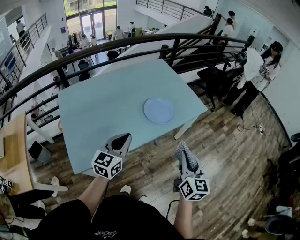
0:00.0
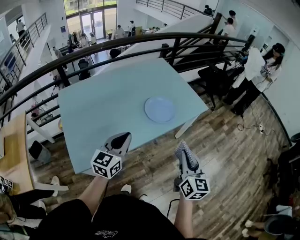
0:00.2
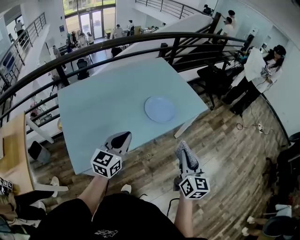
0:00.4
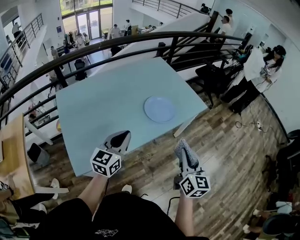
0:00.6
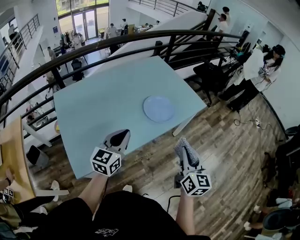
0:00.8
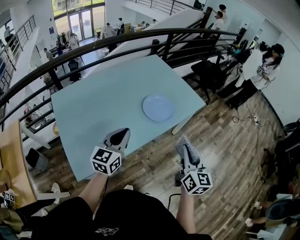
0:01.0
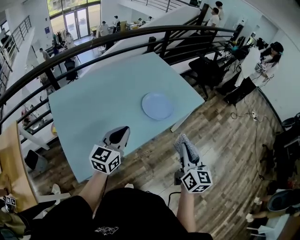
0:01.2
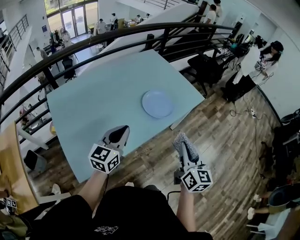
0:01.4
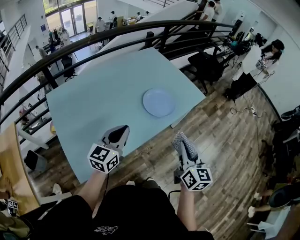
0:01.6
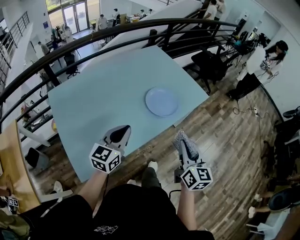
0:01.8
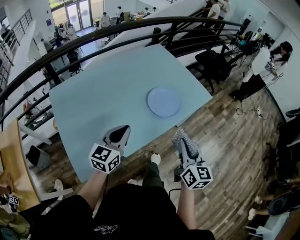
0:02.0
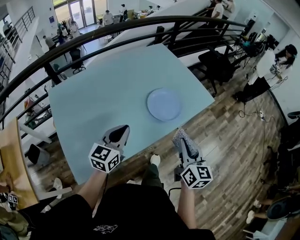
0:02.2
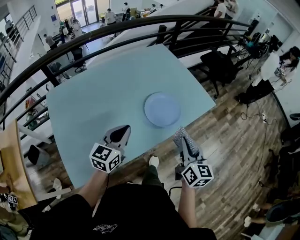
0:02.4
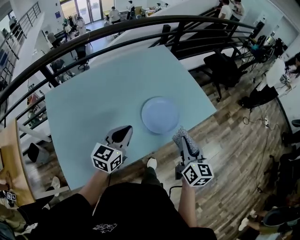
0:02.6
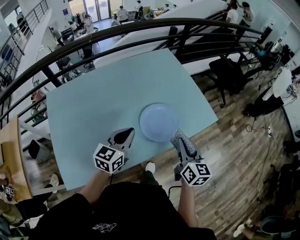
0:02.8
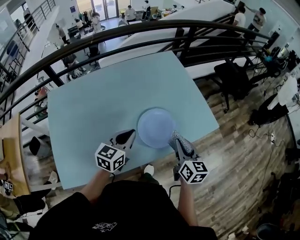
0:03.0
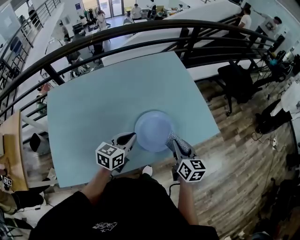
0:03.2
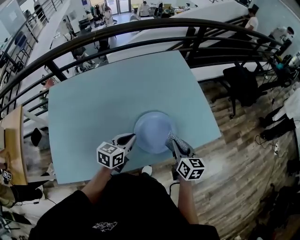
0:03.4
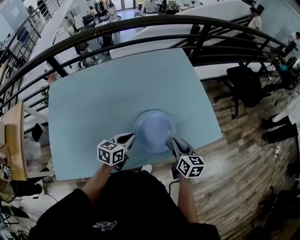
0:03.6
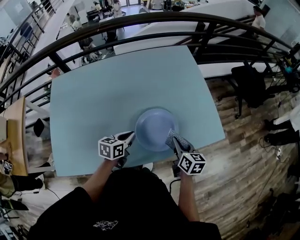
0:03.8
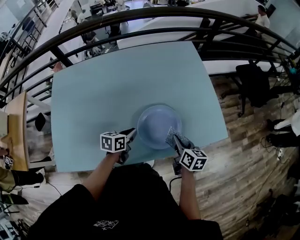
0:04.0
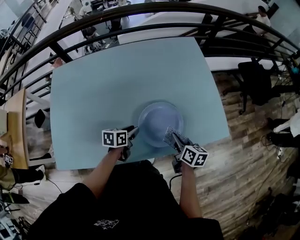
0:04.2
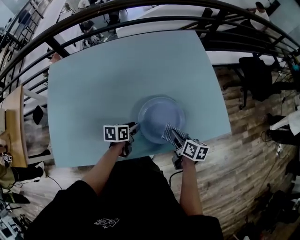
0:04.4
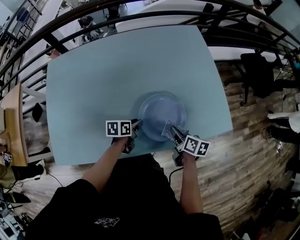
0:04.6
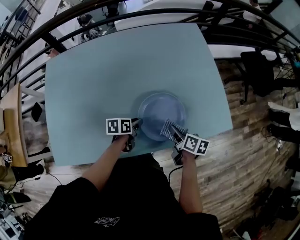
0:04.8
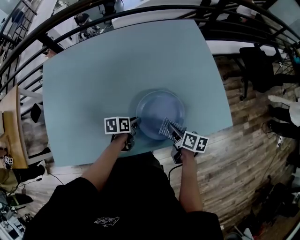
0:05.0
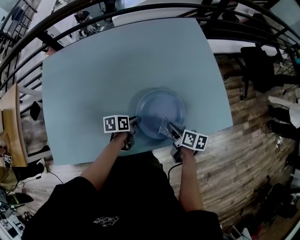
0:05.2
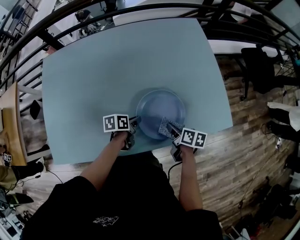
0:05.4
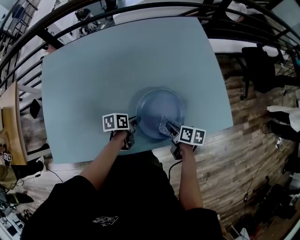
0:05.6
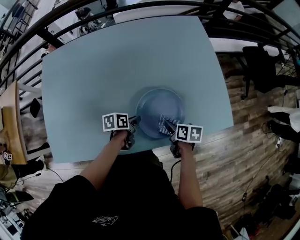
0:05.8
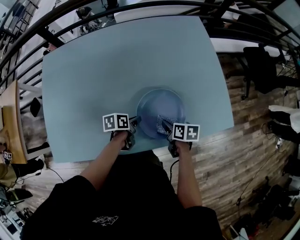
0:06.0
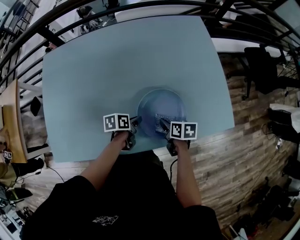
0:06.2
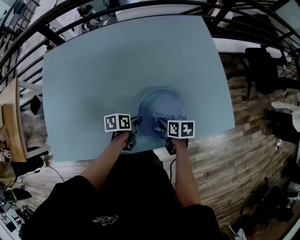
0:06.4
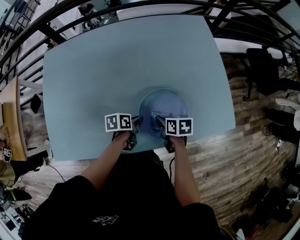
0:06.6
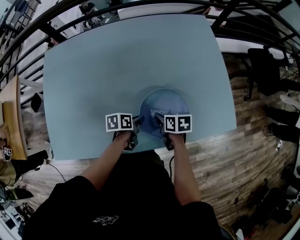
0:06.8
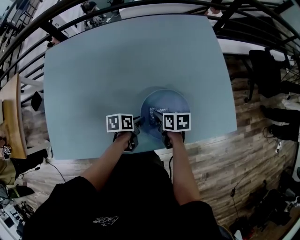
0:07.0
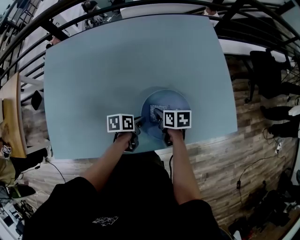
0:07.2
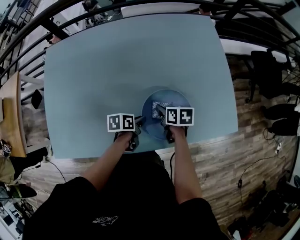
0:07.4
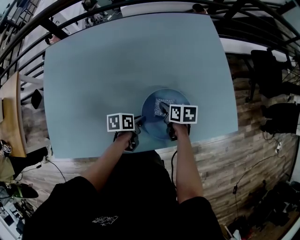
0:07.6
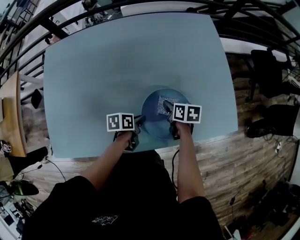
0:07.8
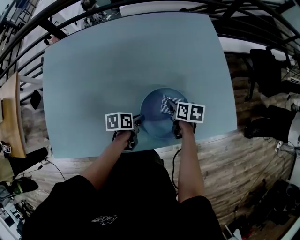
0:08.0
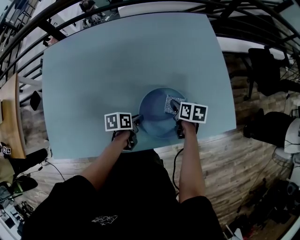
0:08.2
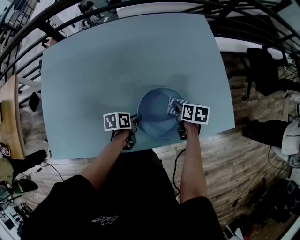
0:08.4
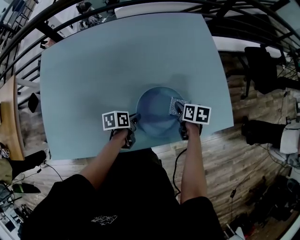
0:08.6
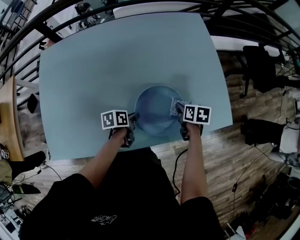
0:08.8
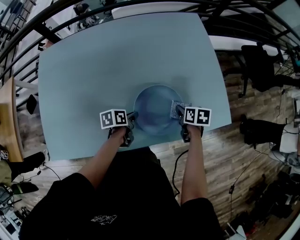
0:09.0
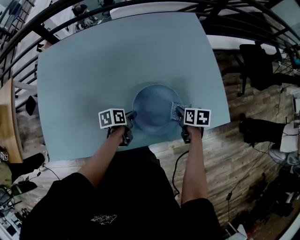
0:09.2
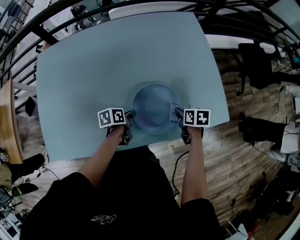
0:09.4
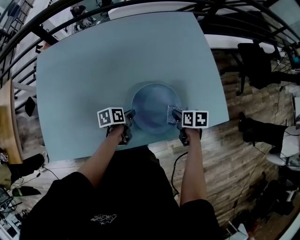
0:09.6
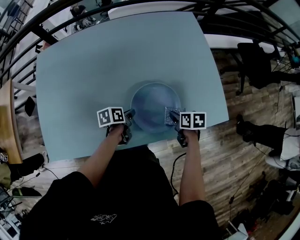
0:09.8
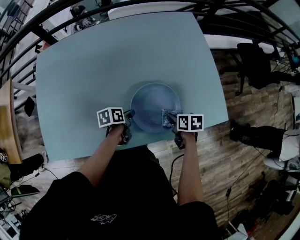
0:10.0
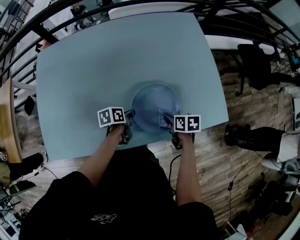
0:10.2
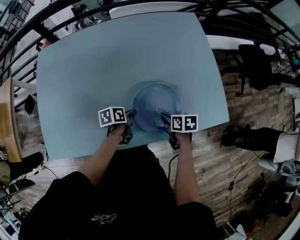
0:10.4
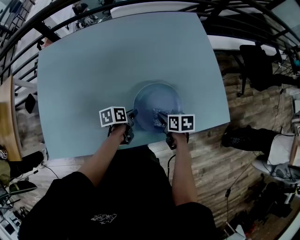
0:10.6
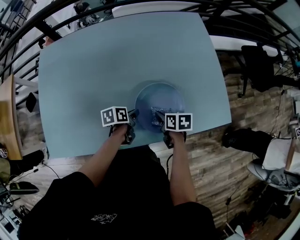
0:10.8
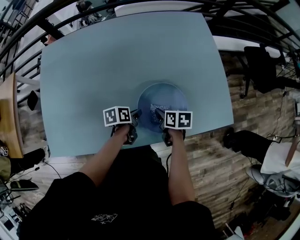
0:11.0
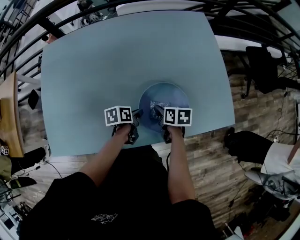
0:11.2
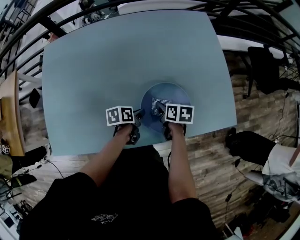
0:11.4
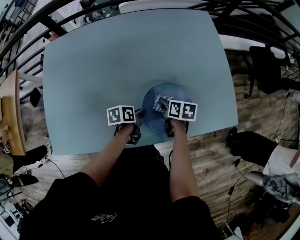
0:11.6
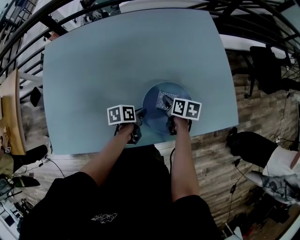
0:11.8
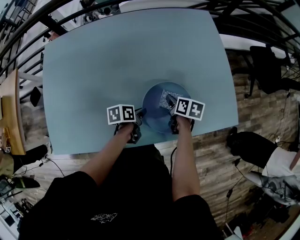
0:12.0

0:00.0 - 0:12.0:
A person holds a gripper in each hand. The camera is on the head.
0:00.0 - 0:01.6: Both grippers move to the left, some 5 cm.
0:01.6 - 0:03.0: Both grippers move forward, roughly 30 cm. The right gripper changes its angle by some 20 degrees.
0:03.0 - 0:04.4: The right gripper goes some 20 cm downward and forward, and swivels some 40 degrees, while the left gripper heads downward, covering approximately 25 cm, turns by some 50 degrees, and opens its fingers.
0:04.4 - 0:06.0: The right gripper heads downward, covering about 5 cm.
0:06.0 - 0:07.6: The right gripper shifts approximately 10 cm forward.
0:07.6 - 0:09.0: The right gripper travels to the right by roughly 15 cm.
0:09.0 - 0:10.4: The right gripper heads to the left and backward, covering some 10 cm.
0:10.4 - 0:12.0: The right gripper heads forward, covering about 10 cm.

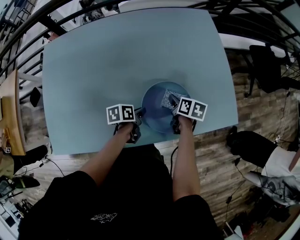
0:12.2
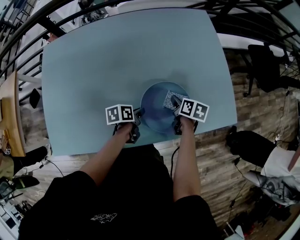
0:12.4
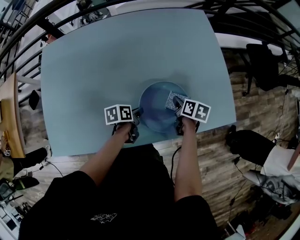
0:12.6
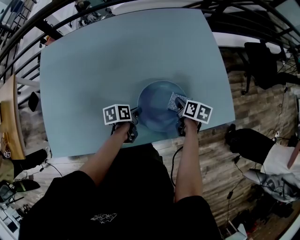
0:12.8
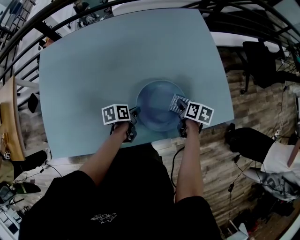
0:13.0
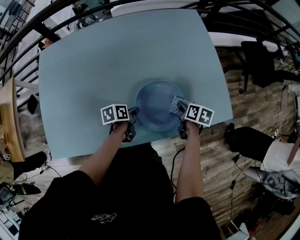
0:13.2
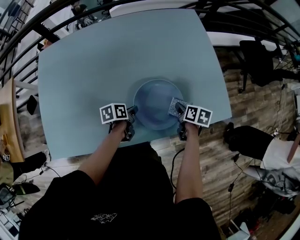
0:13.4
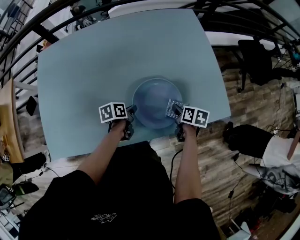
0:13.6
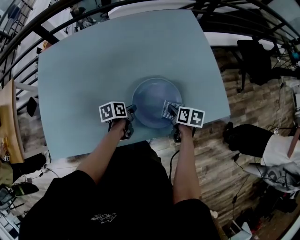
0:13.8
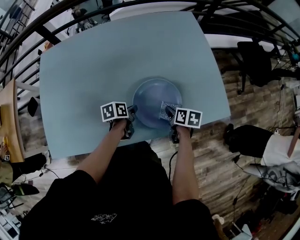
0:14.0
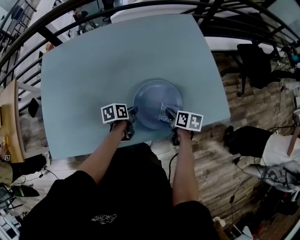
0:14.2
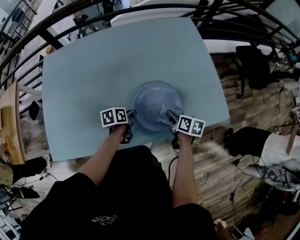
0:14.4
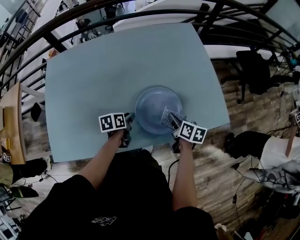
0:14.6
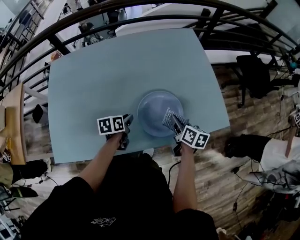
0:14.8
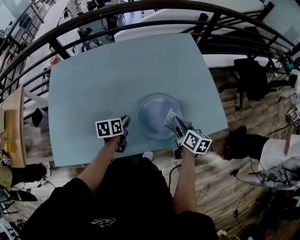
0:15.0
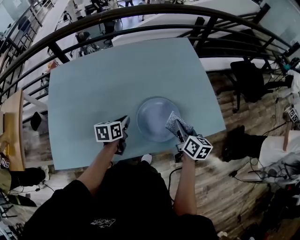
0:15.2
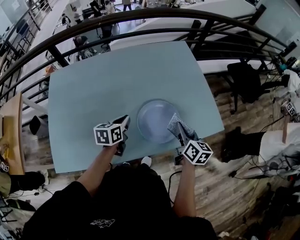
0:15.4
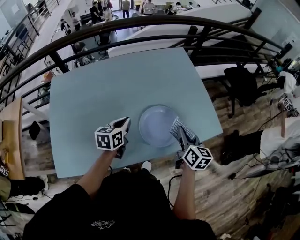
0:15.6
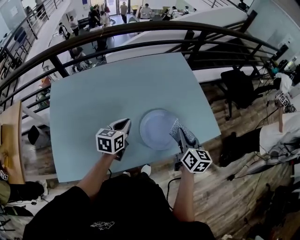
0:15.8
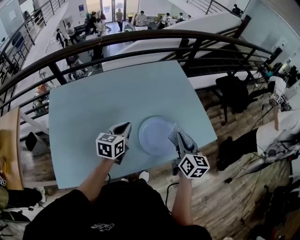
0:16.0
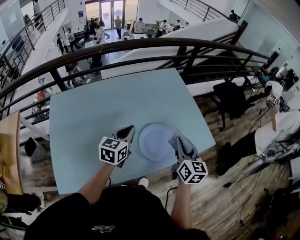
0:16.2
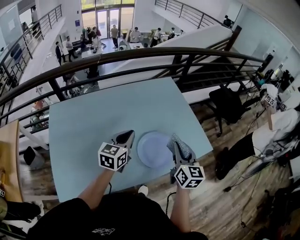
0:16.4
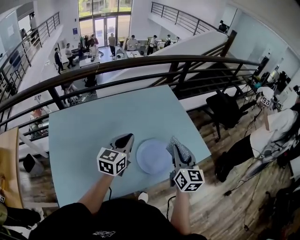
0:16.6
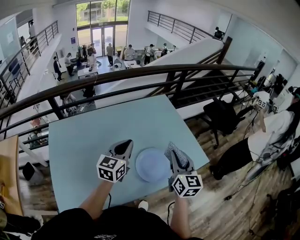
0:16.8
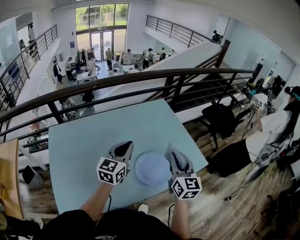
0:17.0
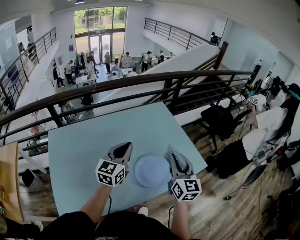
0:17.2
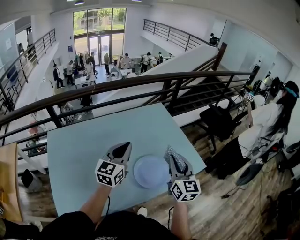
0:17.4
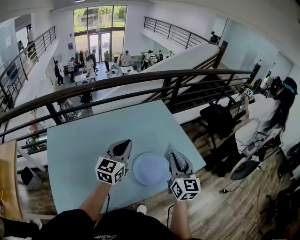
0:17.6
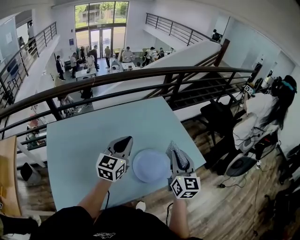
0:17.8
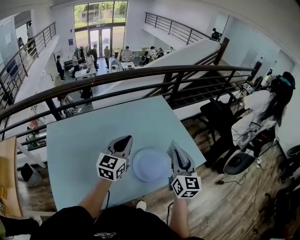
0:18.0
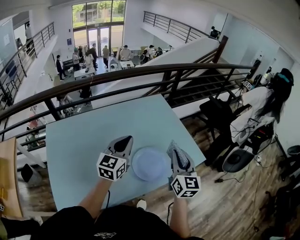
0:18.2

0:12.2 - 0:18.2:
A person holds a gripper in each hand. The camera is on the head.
0:12.2 - 0:13.8: The right gripper goes roughly 10 cm backward and to the right.
0:13.8 - 0:15.2: The left gripper travels upward and to the left by about 15 cm, and turns by roughly 30 degrees. The right gripper heads upward, covering approximately 15 cm, and changes its angle by roughly 30 degrees.
0:15.2 - 0:16.6: Both grippers travel together upward, about 25 cm. The right gripper changes its angle by roughly 30 degrees; the left gripper changes its angle by roughly 40 degrees.
0:16.6 - 0:18.2: The left gripper moves upward, about 5 cm.

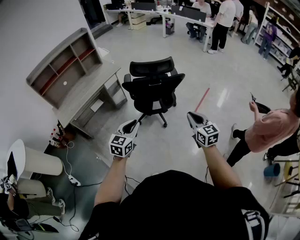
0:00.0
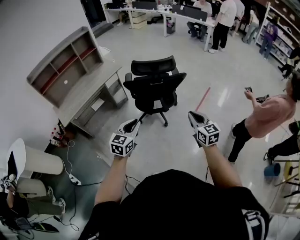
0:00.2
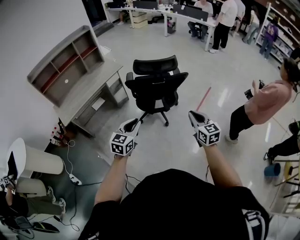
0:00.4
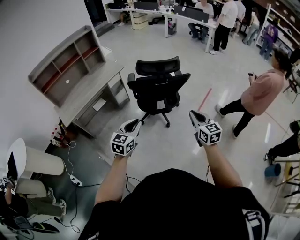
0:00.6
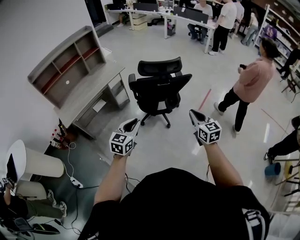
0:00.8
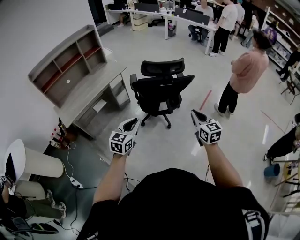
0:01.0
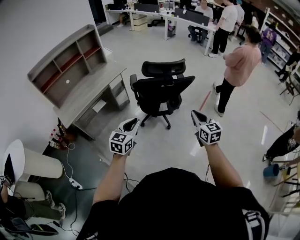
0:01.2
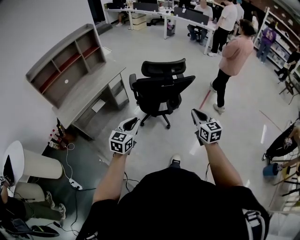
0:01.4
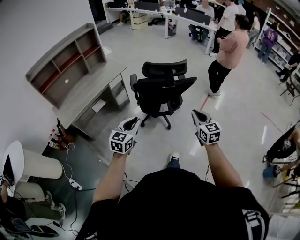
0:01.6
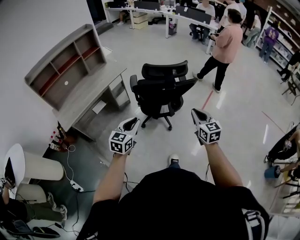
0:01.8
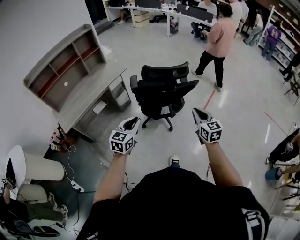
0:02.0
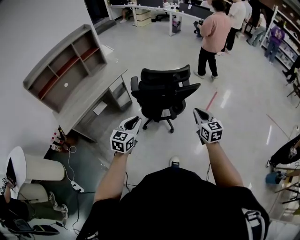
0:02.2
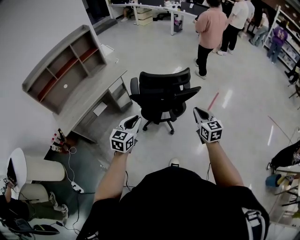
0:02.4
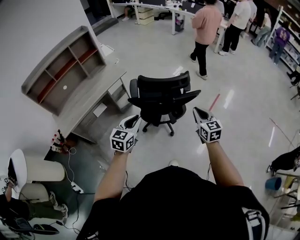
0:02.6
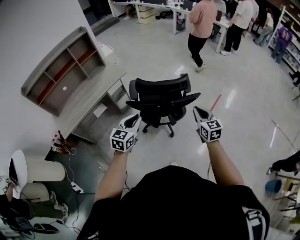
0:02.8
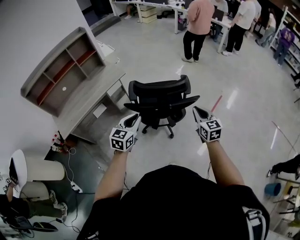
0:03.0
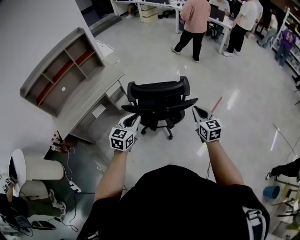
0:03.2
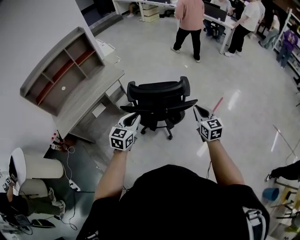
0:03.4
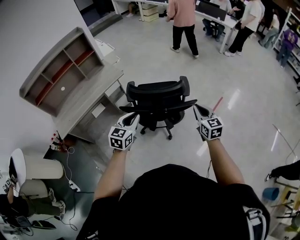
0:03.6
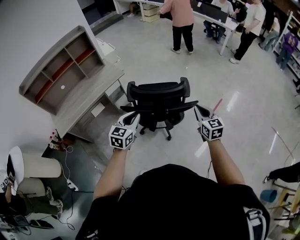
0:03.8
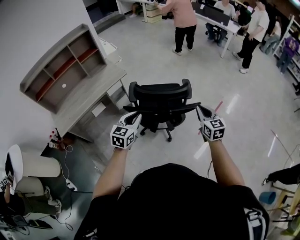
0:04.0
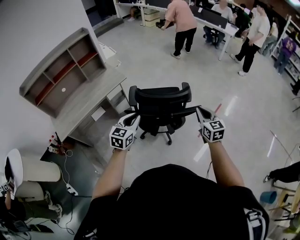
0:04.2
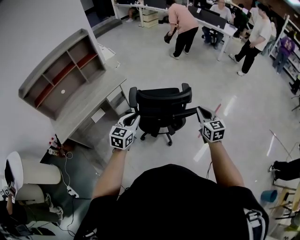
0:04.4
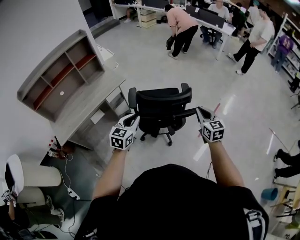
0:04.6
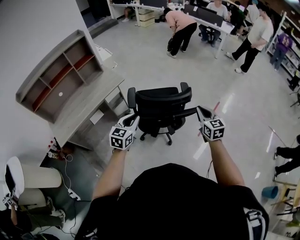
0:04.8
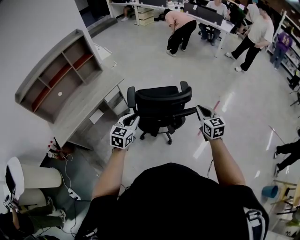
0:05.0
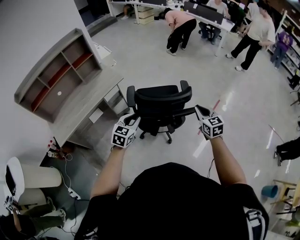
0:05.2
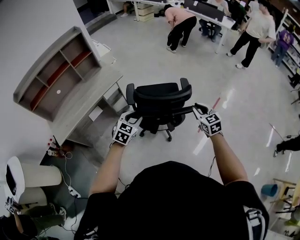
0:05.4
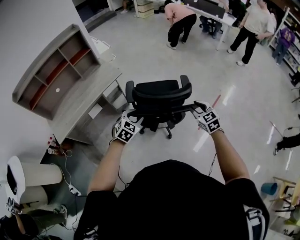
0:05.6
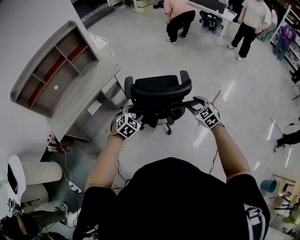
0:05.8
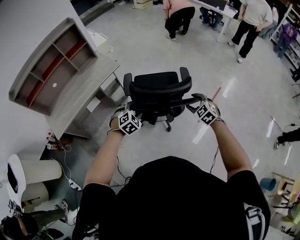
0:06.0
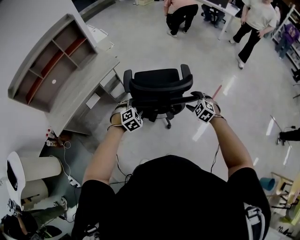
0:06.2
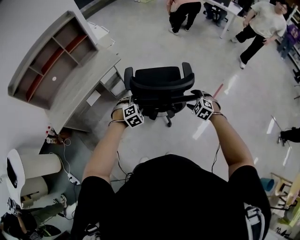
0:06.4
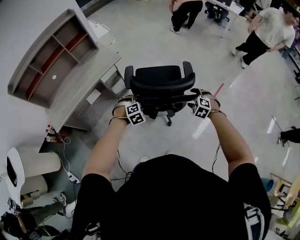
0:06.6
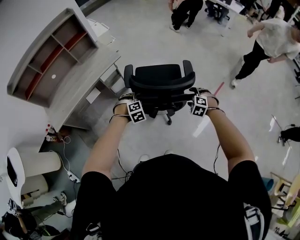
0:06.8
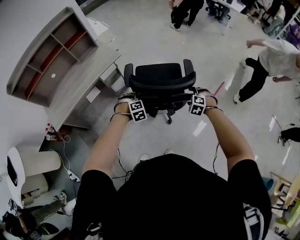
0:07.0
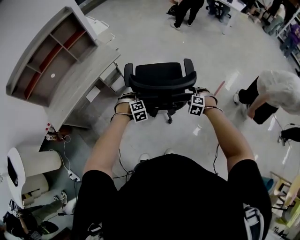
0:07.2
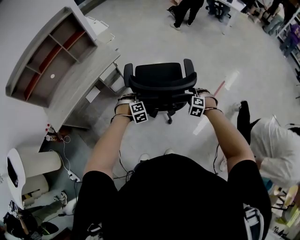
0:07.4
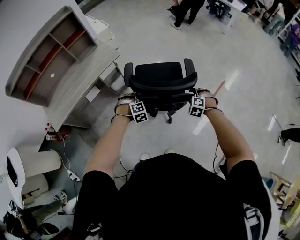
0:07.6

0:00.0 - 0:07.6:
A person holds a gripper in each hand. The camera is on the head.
0:00.0 - 0:01.6: The two grippers go about 10 cm to the left.
0:01.6 - 0:03.0: Both grippers travel together forward, some 25 cm.
0:03.0 - 0:04.6: The two grippers go about 5 cm forward.
0:04.6 - 0:06.0: Both grippers travel together downward and forward, approximately 15 cm. The left gripper tilts its fingers approximately 30 degrees downward, and opens its fingers, while the right gripper turns by approximately 50 degrees, and opens up.
0:06.0 - 0:07.6: The two grippers go roughly 10 cm downward and forward. The left gripper swivels approximately 30 degrees; the right gripper changes its angle by approximately 30 degrees.
